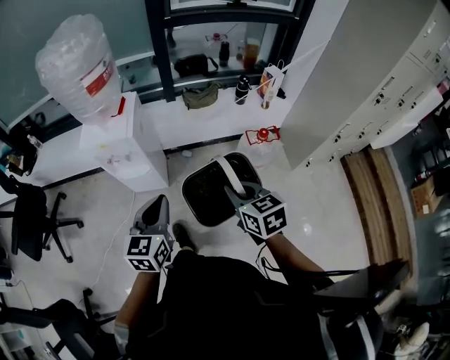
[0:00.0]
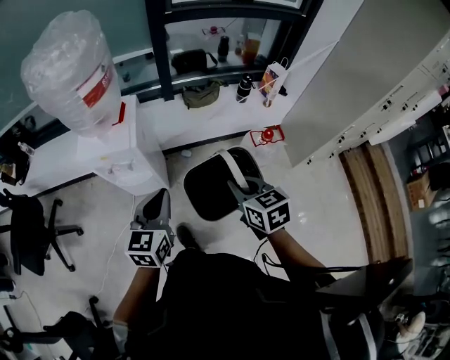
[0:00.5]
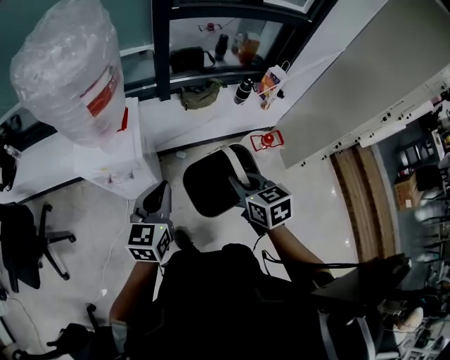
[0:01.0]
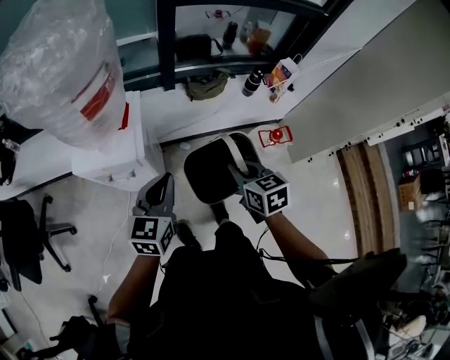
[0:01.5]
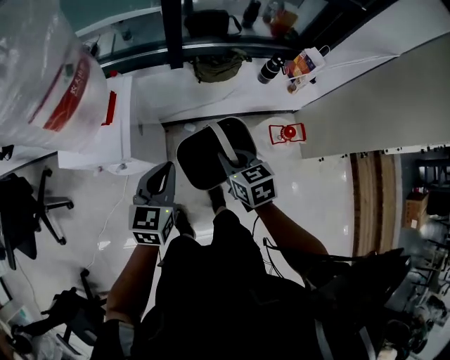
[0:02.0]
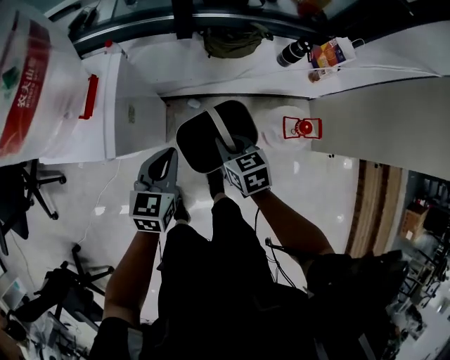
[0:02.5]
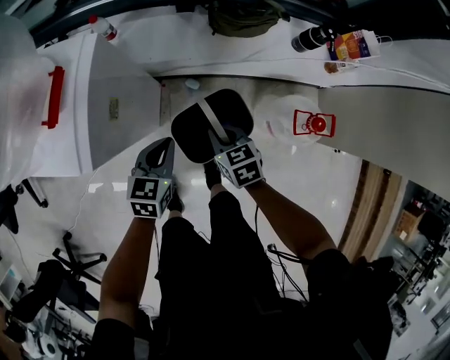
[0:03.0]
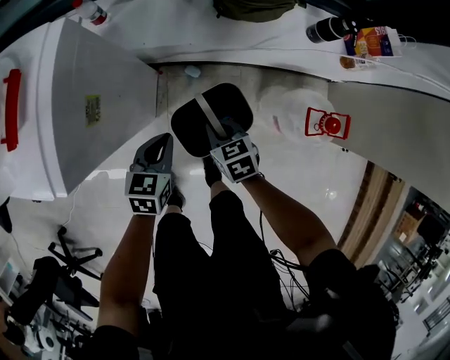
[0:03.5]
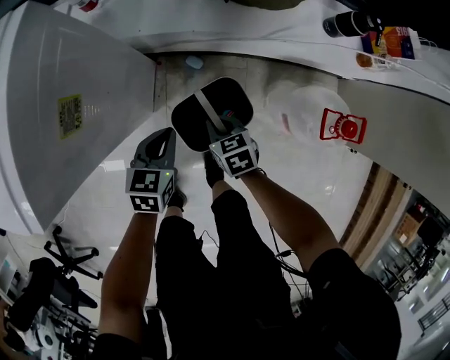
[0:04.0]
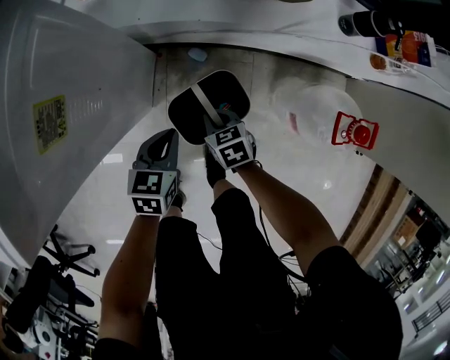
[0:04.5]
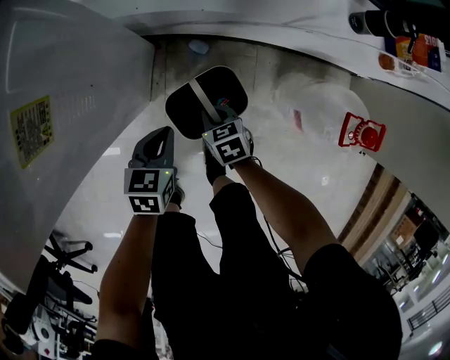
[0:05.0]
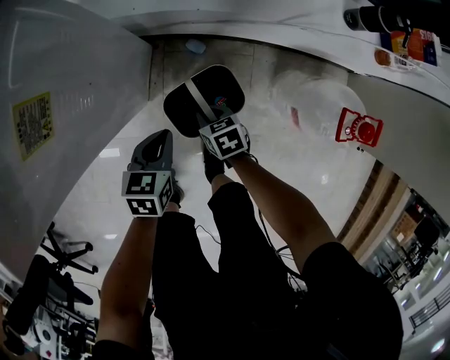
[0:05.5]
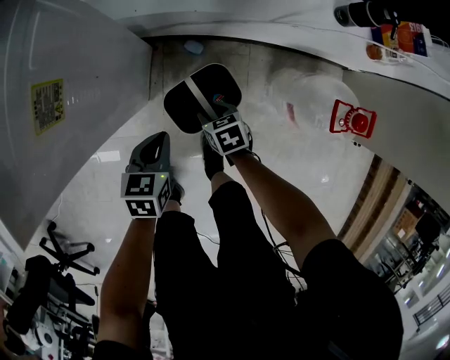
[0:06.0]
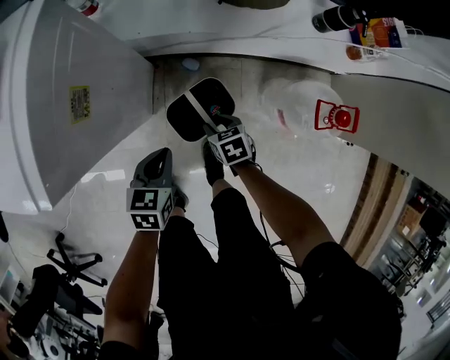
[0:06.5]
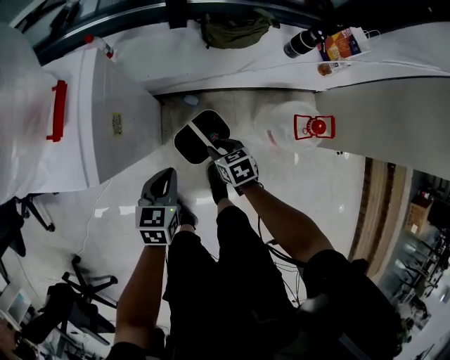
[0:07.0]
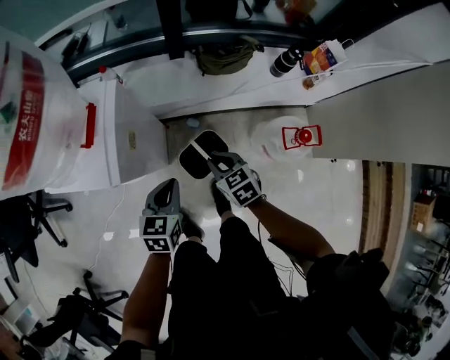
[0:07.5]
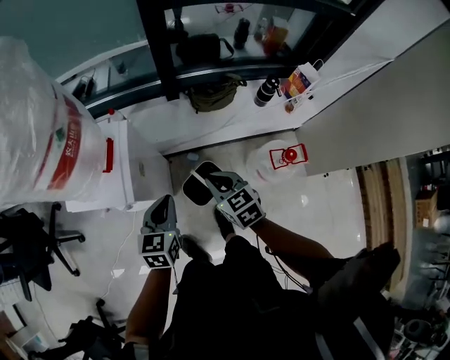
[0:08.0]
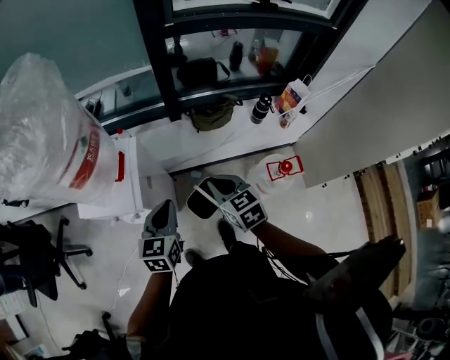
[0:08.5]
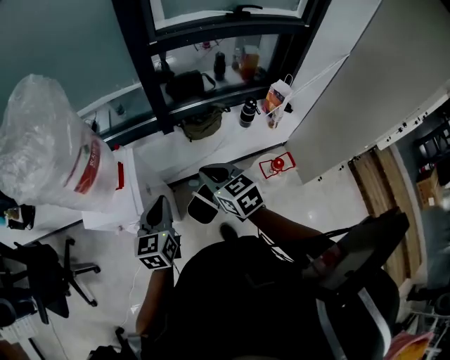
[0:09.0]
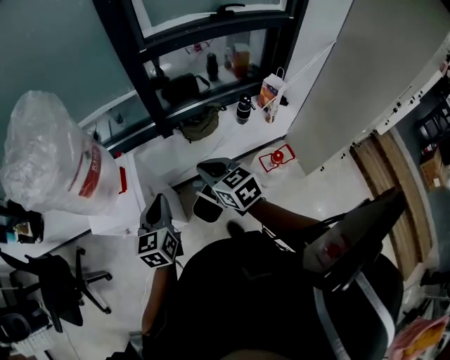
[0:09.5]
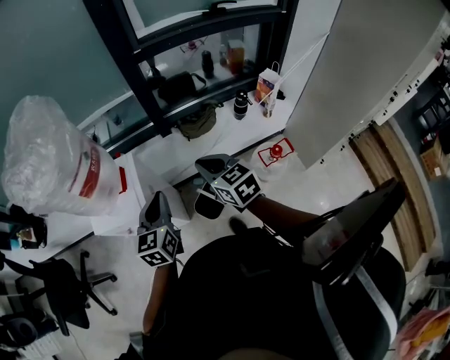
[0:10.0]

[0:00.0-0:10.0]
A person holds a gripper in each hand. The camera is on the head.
0:00.0 to 0:02.0: The right gripper goes about 35 cm forward and downward. Meanwhile the left gripper shifts some 30 cm forward.
0:02.0 to 0:04.0: Both grippers move downward, some 40 cm. The left gripper changes its angle by roughly 20 degrees.
0:04.0 to 0:06.0: The left gripper ends up about 5 cm from where it was, while the right gripper heads downward, covering roughly 10 cm, and opens its fingers.
0:06.0 to 0:08.0: Both grippers move upward, roughly 50 cm. The right gripper swivels roughly 30 degrees, and closes its fingers. The left gripper rotates some 20 degrees.
0:08.0 to 0:10.0: The grippers both shift upward by roughly 15 cm.

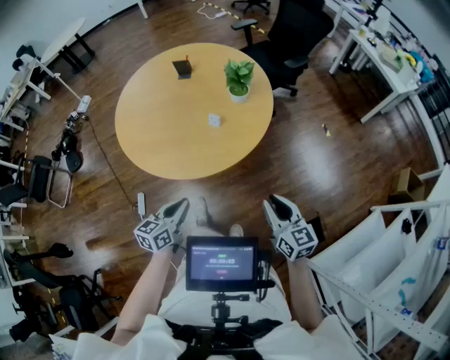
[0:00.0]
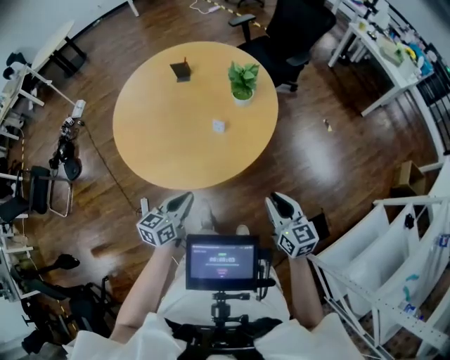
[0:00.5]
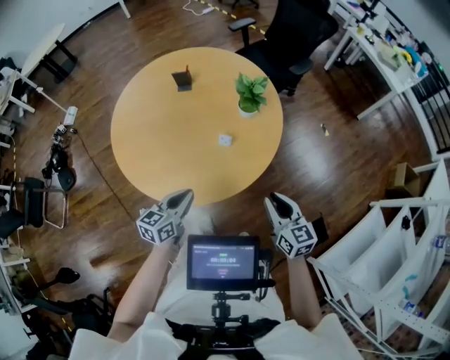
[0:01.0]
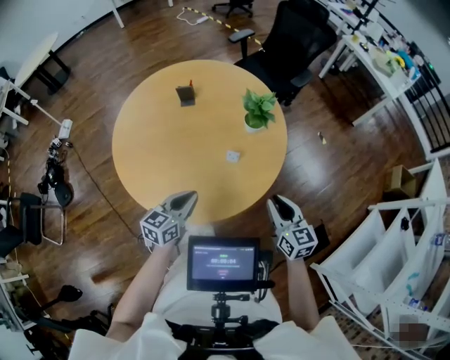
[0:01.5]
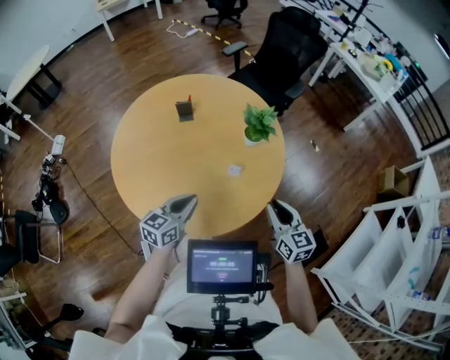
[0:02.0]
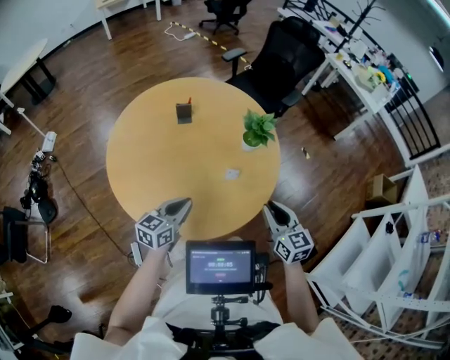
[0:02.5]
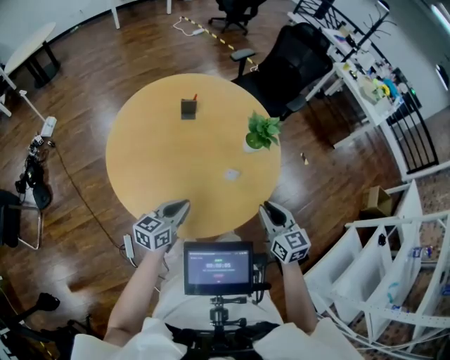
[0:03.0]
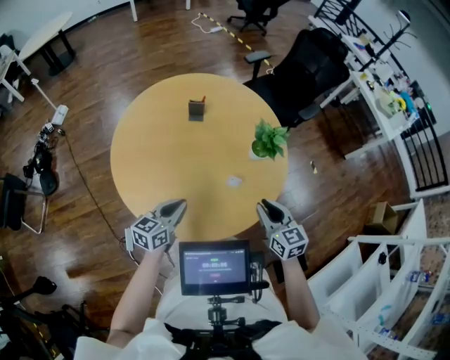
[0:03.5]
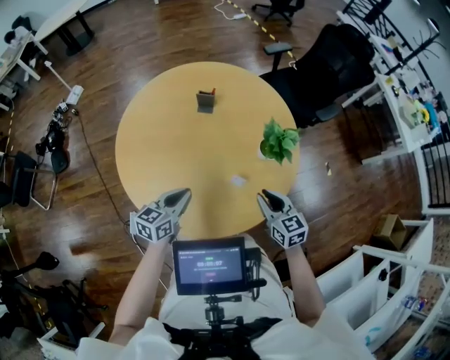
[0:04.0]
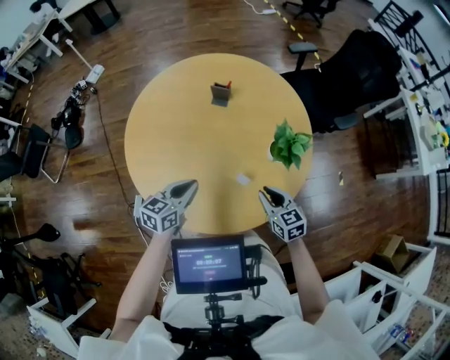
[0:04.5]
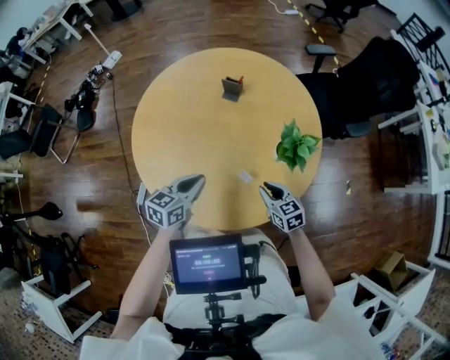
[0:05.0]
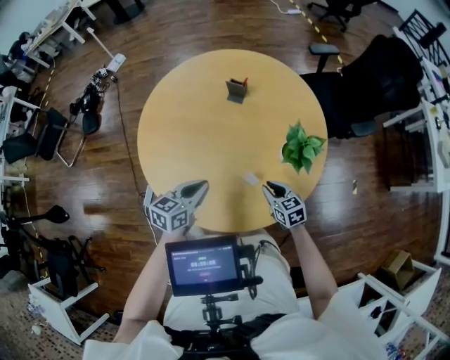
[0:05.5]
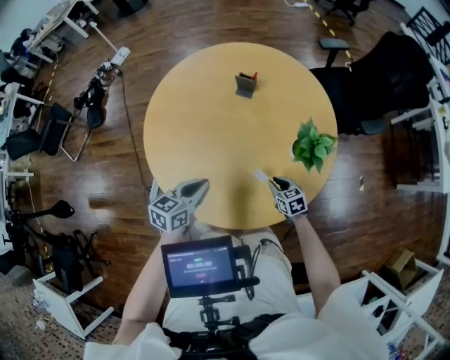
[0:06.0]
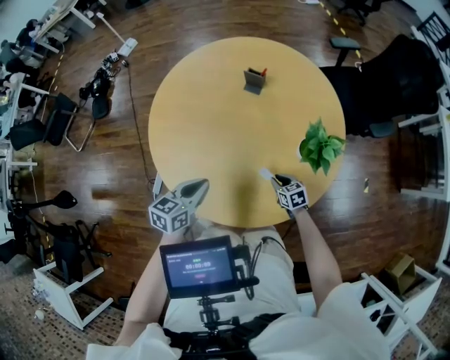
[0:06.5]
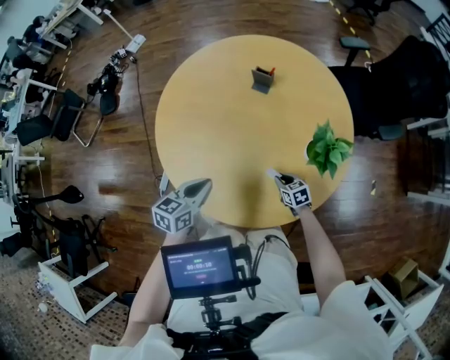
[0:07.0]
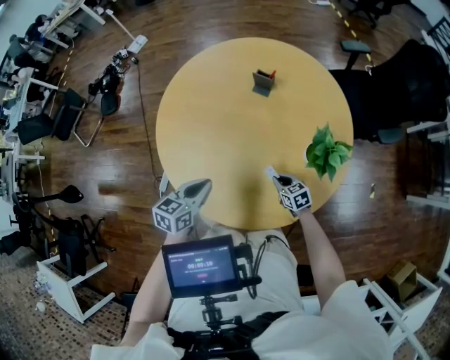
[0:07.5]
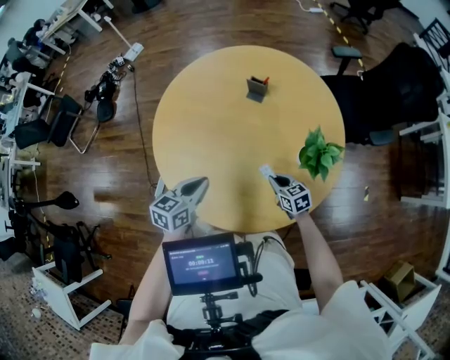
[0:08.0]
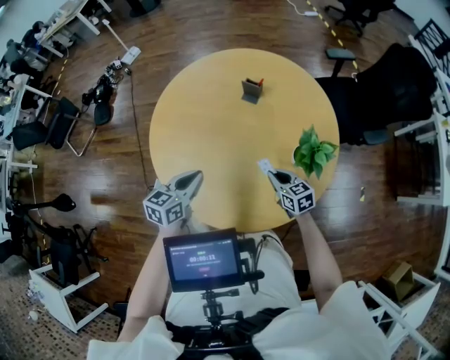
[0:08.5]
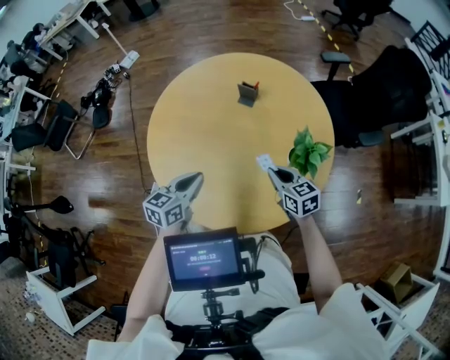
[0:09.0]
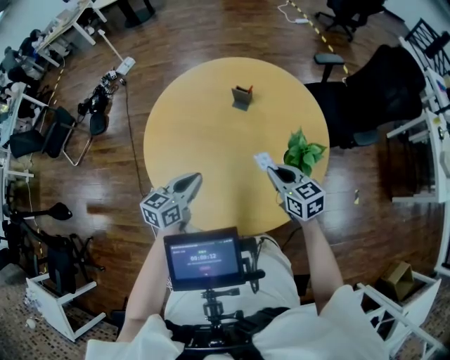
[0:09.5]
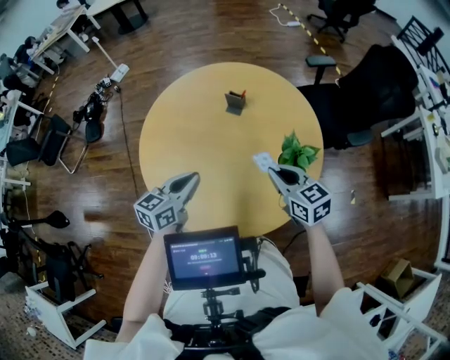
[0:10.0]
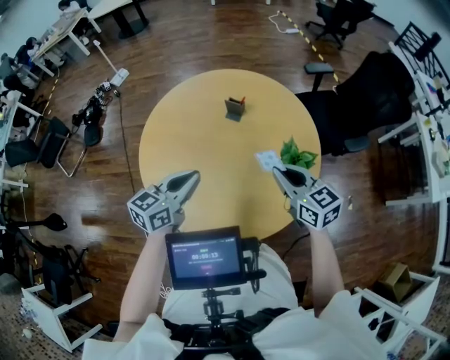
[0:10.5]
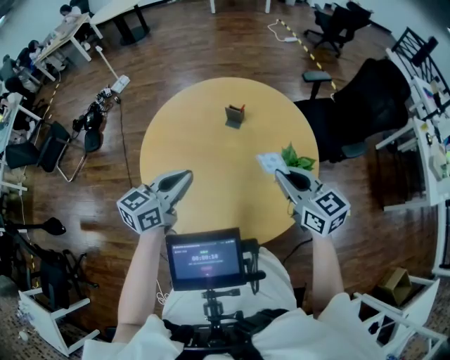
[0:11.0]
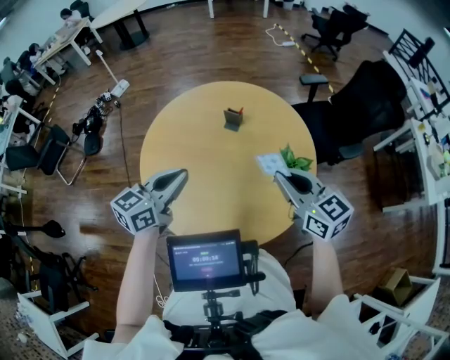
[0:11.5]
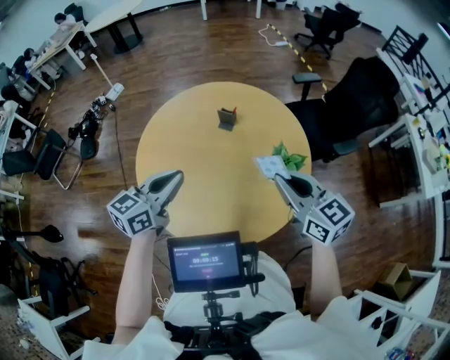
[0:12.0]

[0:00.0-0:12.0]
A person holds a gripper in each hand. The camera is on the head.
0:00.0 to 0:02.0: The right gripper moves to the left and forward, roughly 25 cm. Meanwhile the left gripper goes some 30 cm forward and to the left, and rotates roughly 20 degrees.
0:02.0 to 0:04.0: The left gripper heads forward, covering roughly 5 cm; the right gripper is displaced forward by some 15 cm, and rotates some 30 degrees.
0:04.0 to 0:06.0: The right gripper shifts roughly 20 cm downward, and changes its angle by approximately 30 degrees.
0:06.0 to 0:08.0: The right gripper changes place by roughly 5 cm.
0:08.0 to 0:10.0: The left gripper shifts roughly 10 cm upward; the right gripper shifts approximately 25 cm upward.
0:10.0 to 0:12.0: The grippers both shift upward by approximately 15 cm.

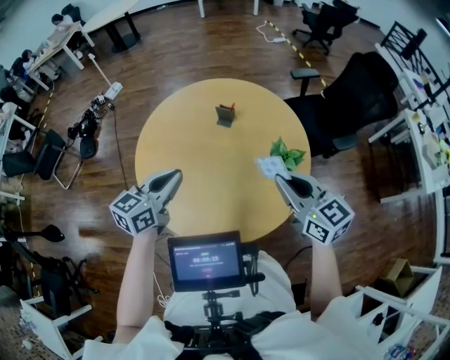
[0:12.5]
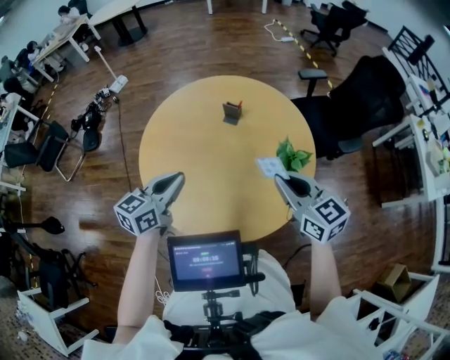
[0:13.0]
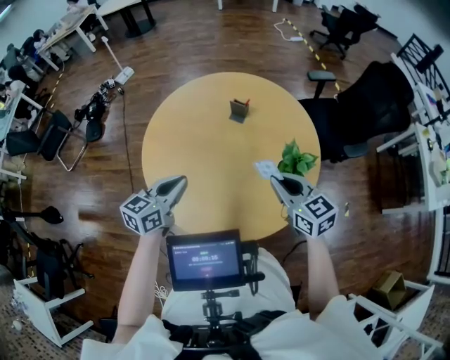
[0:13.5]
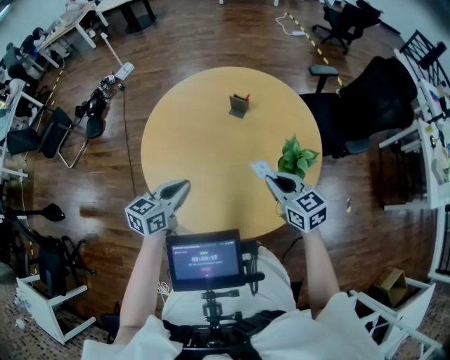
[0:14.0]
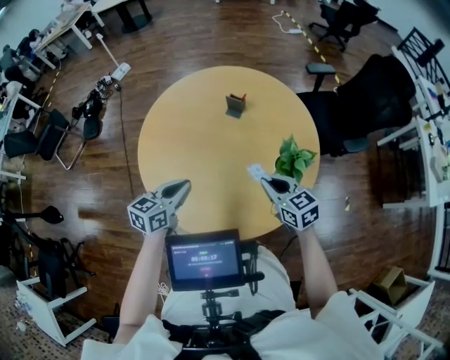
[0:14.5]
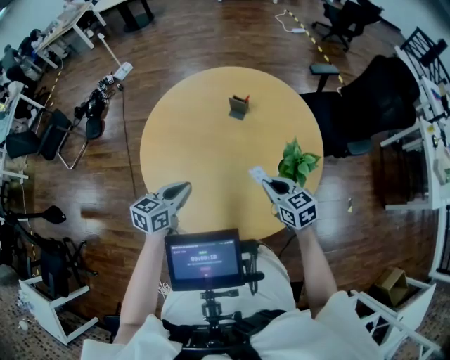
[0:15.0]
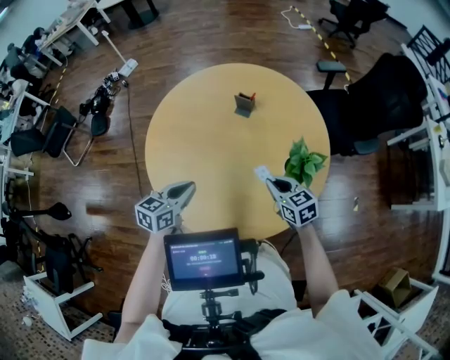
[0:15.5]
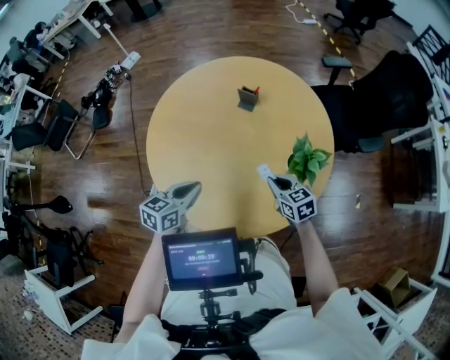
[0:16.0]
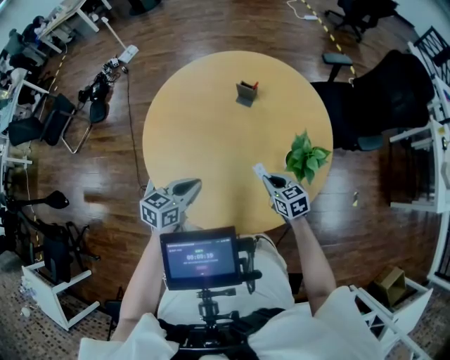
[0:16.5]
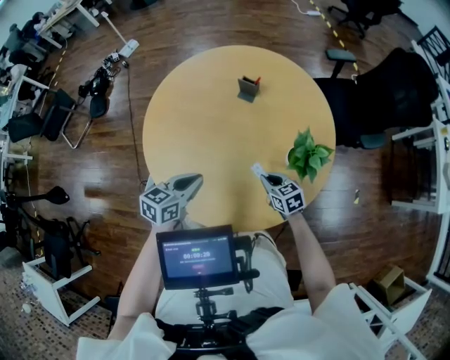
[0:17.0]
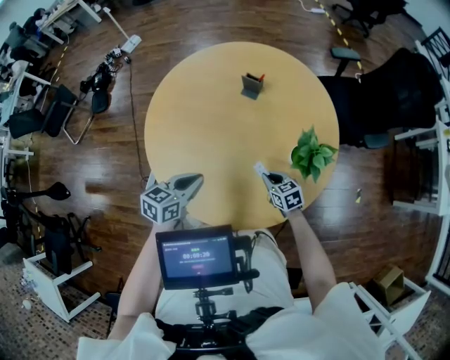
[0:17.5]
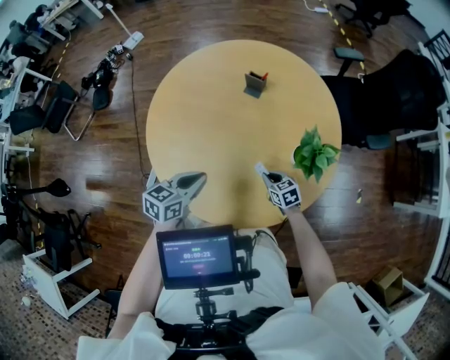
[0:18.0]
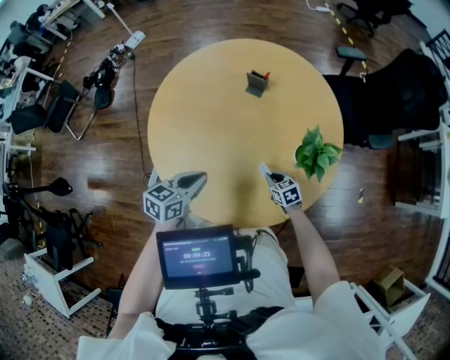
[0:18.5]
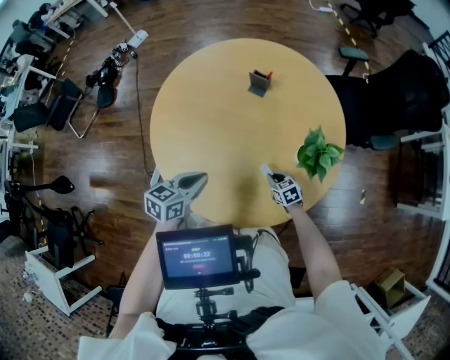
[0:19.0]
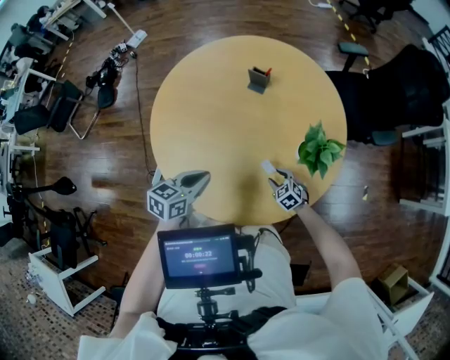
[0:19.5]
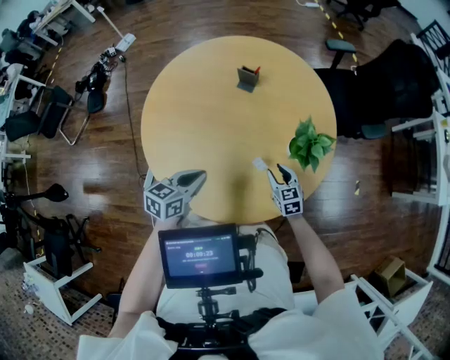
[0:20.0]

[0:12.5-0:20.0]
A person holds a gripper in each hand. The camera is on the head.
0:12.5 to 0:14.5: Both grippers travel together downward, roughly 15 cm.
0:14.5 to 0:16.5: The right gripper is displaced downward by some 15 cm; the left gripper shifts roughly 5 cm downward.
0:16.5 to 0:18.0: The right gripper moves downward, some 10 cm.
0:18.0 to 0:20.0: The right gripper changes place by about 5 cm, and opens its fingers.
